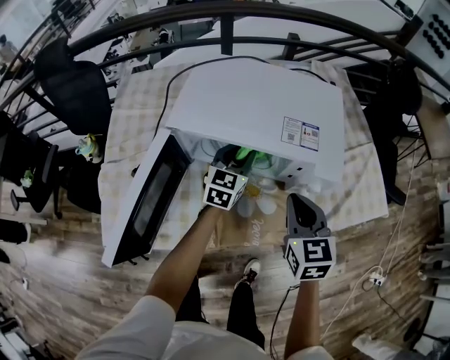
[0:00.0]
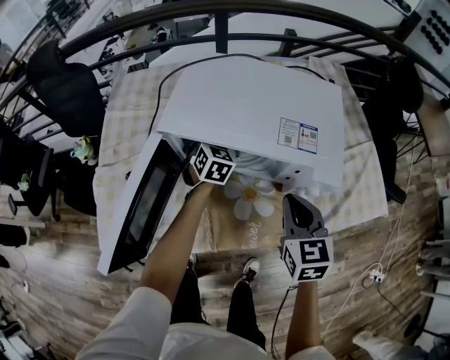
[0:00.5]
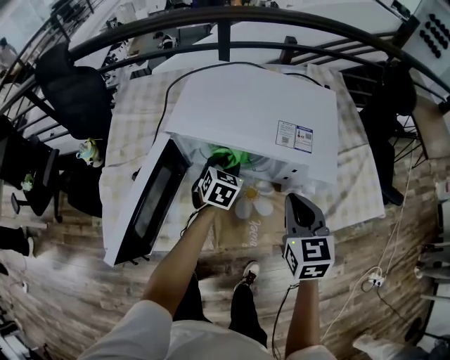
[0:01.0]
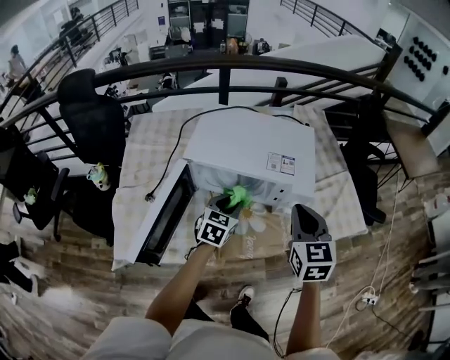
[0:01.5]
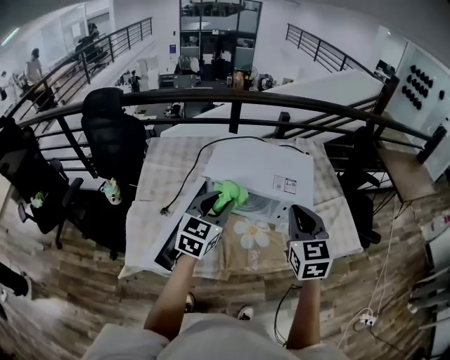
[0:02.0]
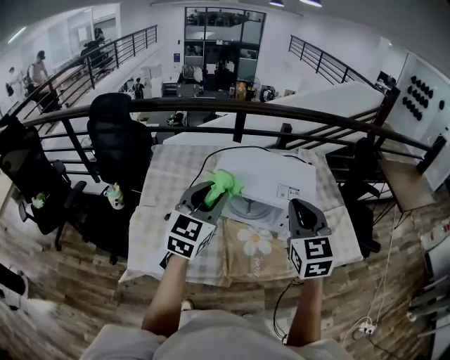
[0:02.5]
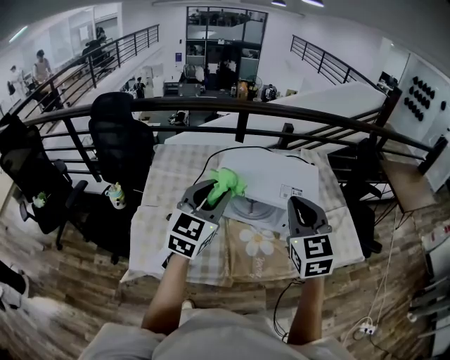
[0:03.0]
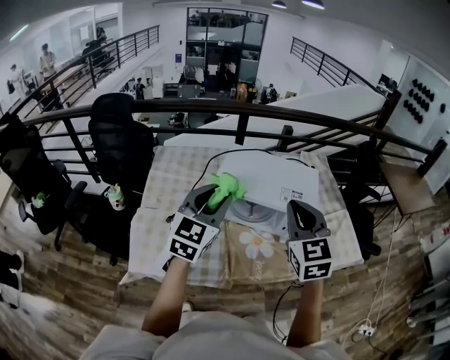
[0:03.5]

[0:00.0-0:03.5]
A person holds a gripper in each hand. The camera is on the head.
0:00.0 to 0:02.0: The right gripper shifts roughly 20 cm upward. The left gripper goes roughly 30 cm upward and backward.
0:02.0 to 0:03.5: The right gripper moves to the left and upward, roughly 10 cm. The left gripper moves upward and to the left, some 10 cm.

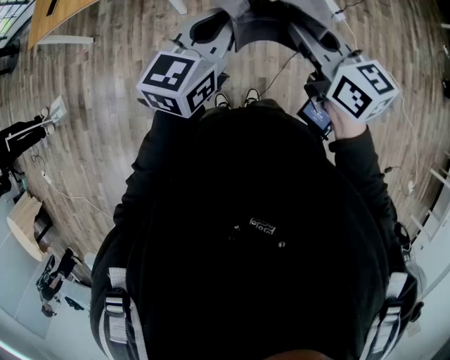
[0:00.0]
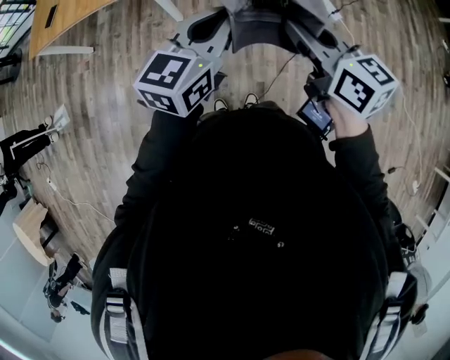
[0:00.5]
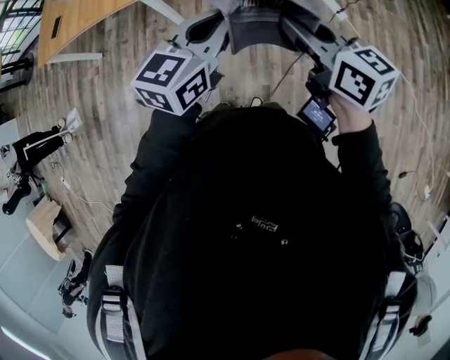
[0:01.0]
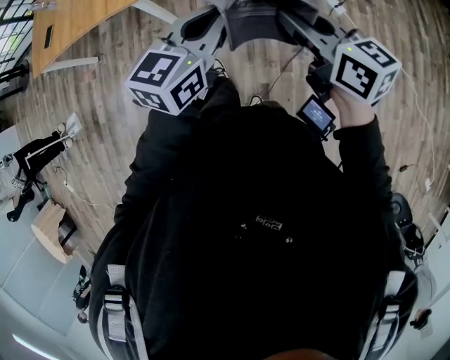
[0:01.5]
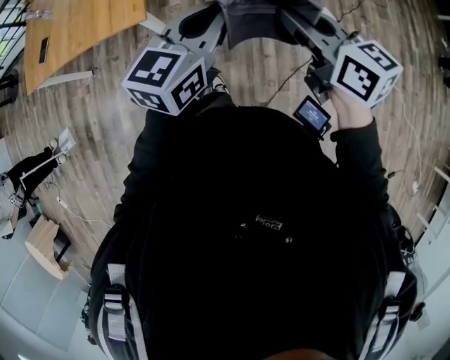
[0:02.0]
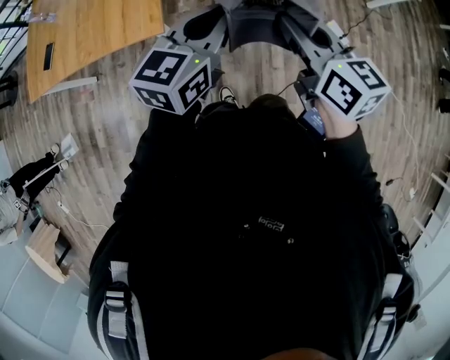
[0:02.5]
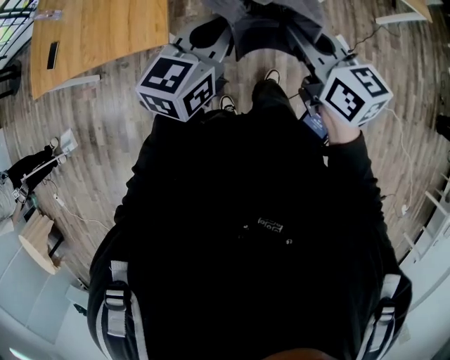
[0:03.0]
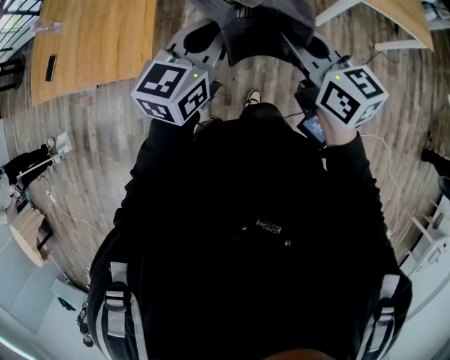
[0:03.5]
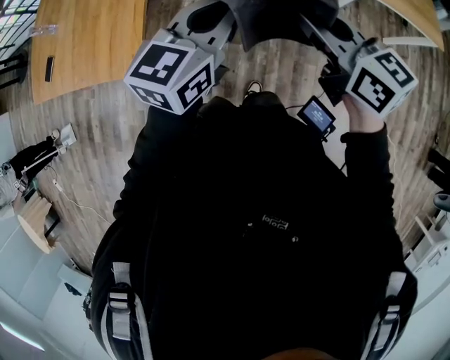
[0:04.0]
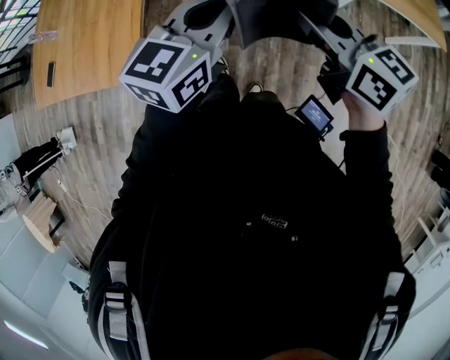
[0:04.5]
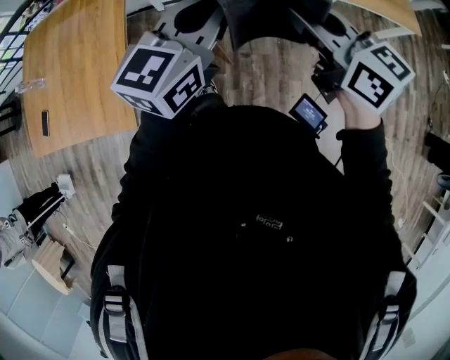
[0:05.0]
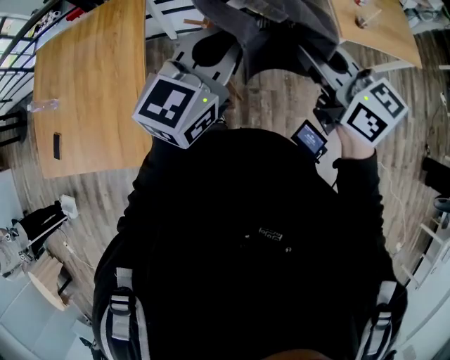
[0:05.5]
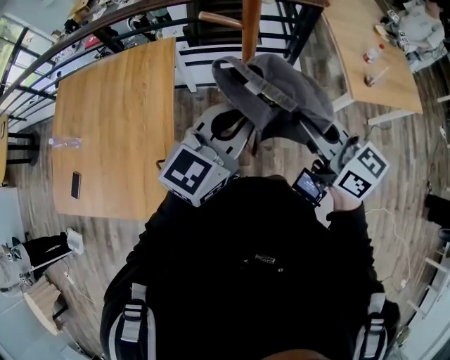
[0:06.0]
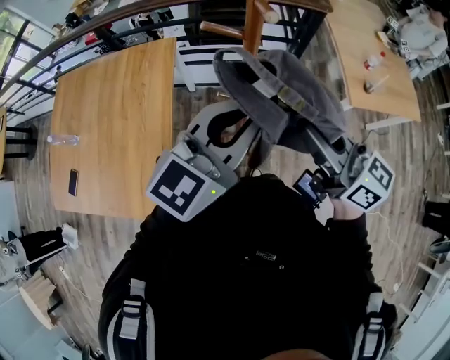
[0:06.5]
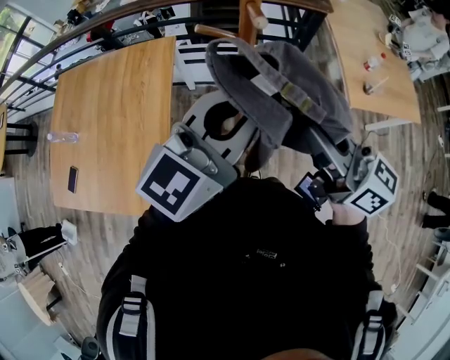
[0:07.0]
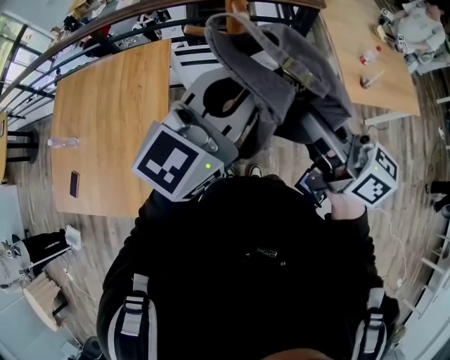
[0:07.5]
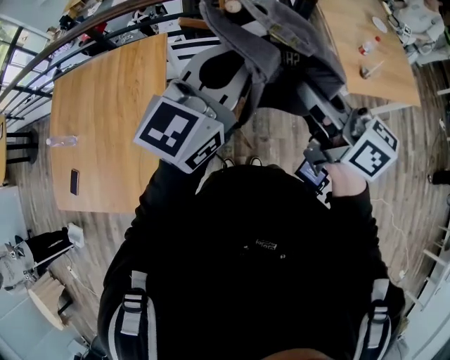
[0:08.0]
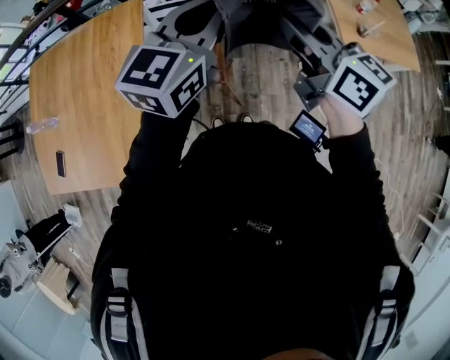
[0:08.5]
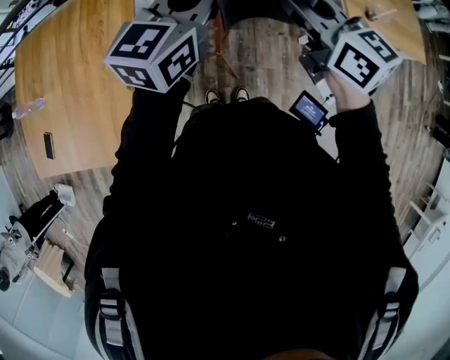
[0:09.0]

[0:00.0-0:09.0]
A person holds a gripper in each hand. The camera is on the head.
0:00.0 to 0:02.0: Both grippers move forward, about 20 cm.
0:02.0 to 0:04.5: The two grippers go roughly 35 cm forward and to the right.
0:04.5 to 0:07.0: The two grippers go some 25 cm forward and upward. The left gripper changes its angle by about 20 degrees.
0:07.0 to 0:09.0: The right gripper goes some 15 cm forward and downward; the left gripper heads downward and forward, covering about 15 cm.

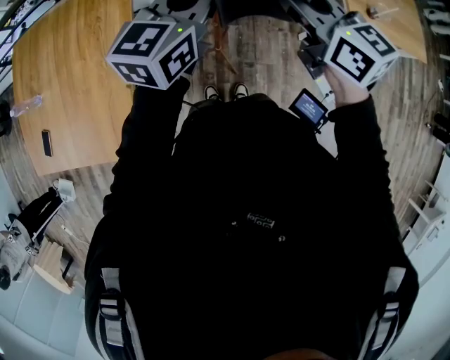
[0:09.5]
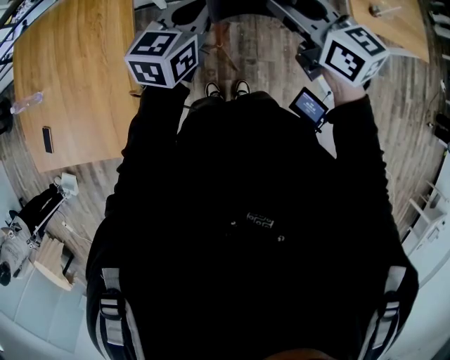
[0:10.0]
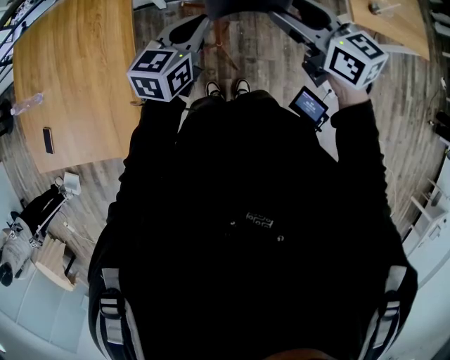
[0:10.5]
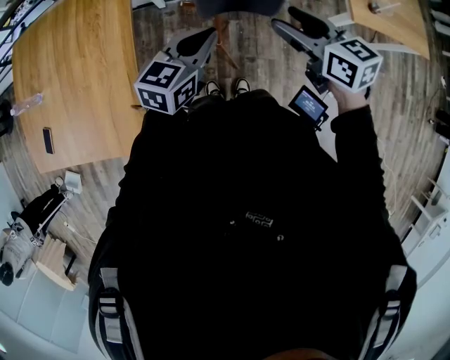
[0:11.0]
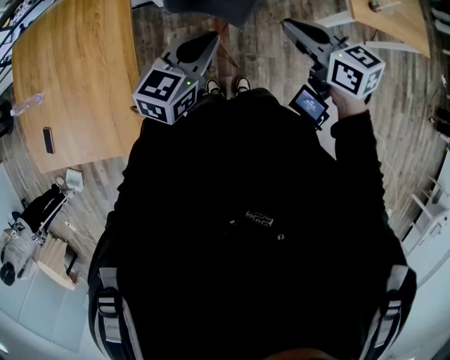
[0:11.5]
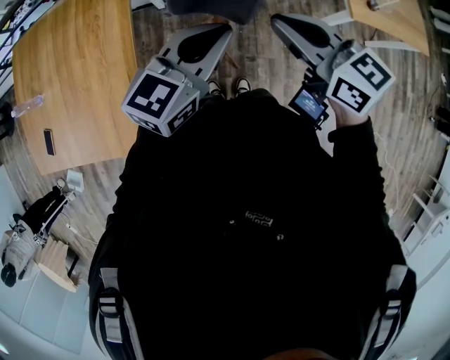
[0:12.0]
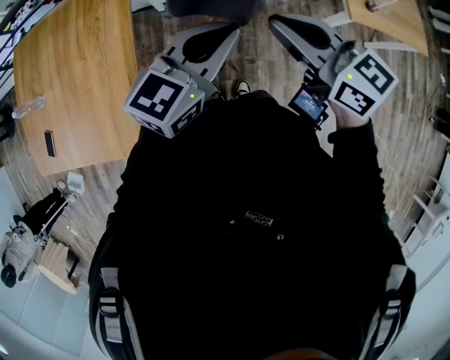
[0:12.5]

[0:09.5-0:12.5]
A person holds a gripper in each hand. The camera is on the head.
0:09.5 to 0:11.0: The right gripper heads downward, covering approximately 10 cm, and opens, while the left gripper is displaced downward and backward by some 15 cm.
0:11.0 to 0:12.5: The two grippers go roughly 10 cm upward. The right gripper closes its fingers.

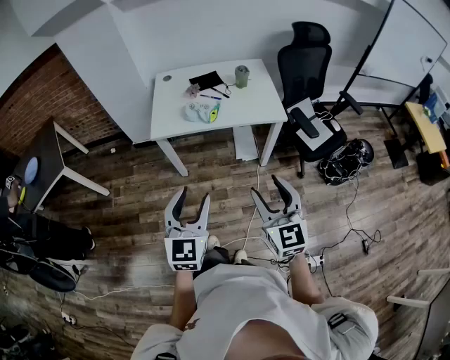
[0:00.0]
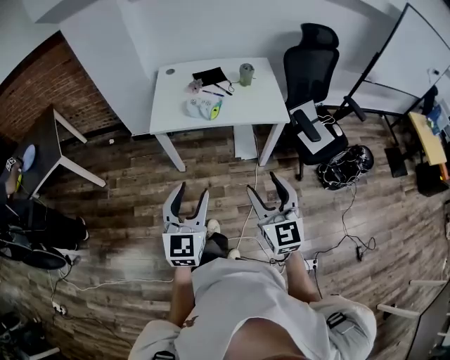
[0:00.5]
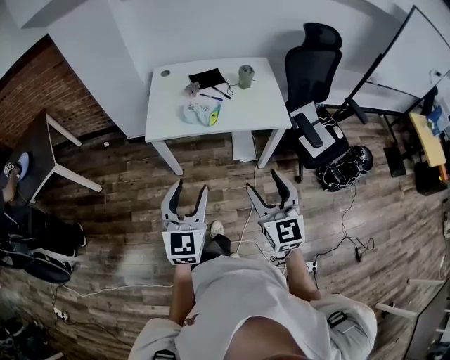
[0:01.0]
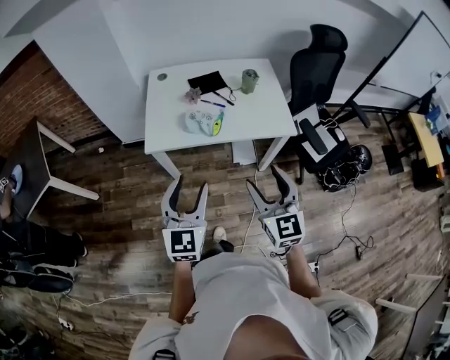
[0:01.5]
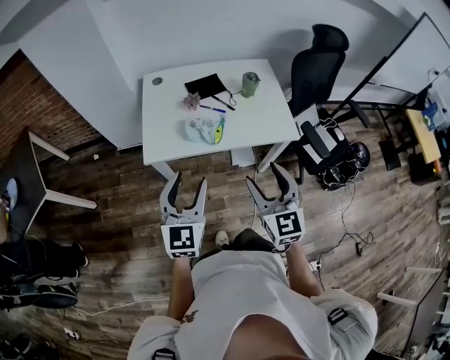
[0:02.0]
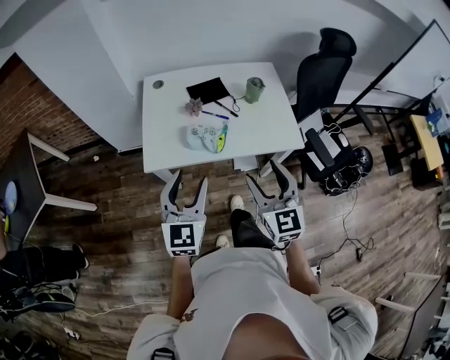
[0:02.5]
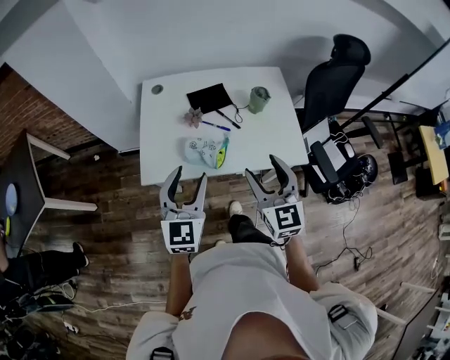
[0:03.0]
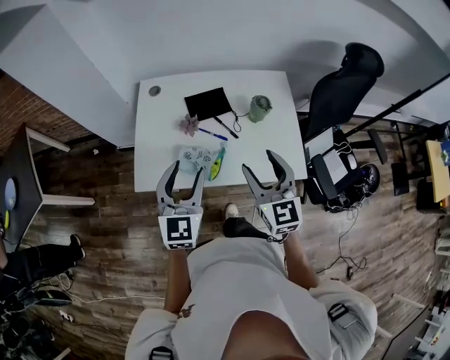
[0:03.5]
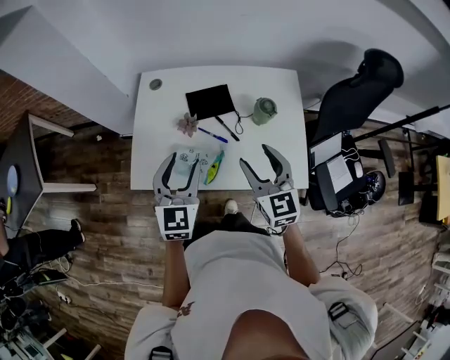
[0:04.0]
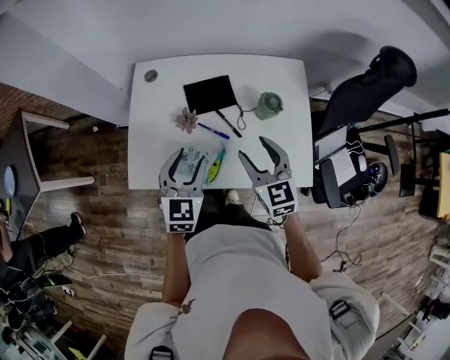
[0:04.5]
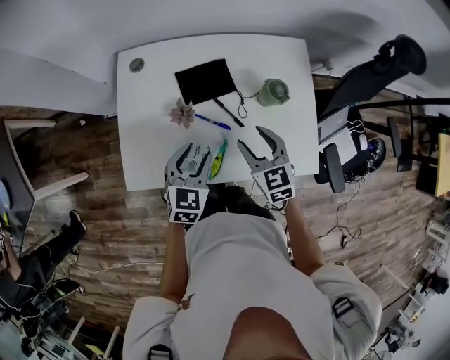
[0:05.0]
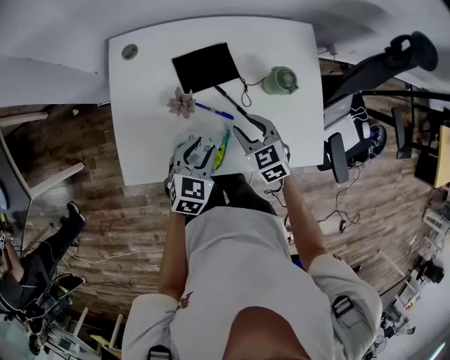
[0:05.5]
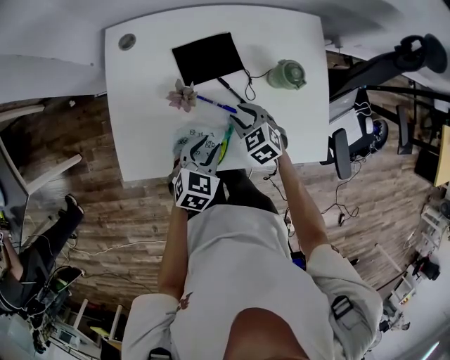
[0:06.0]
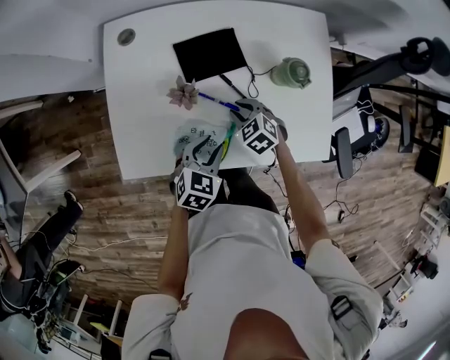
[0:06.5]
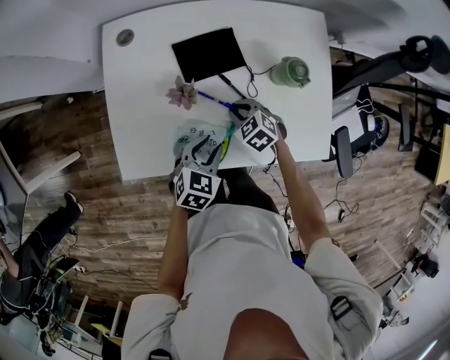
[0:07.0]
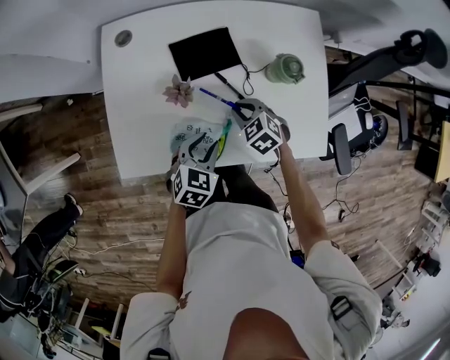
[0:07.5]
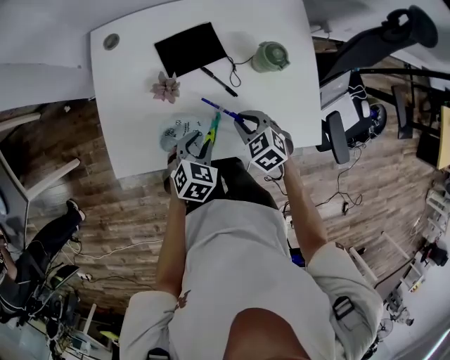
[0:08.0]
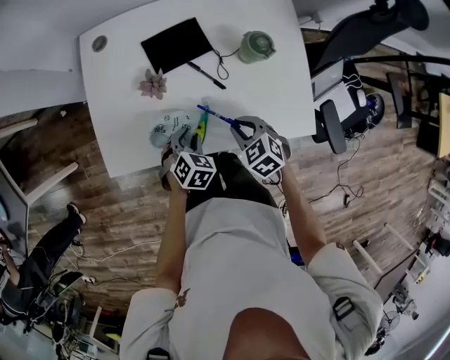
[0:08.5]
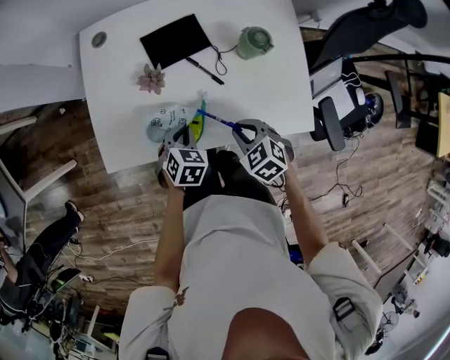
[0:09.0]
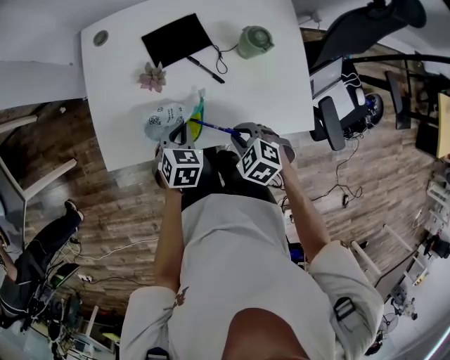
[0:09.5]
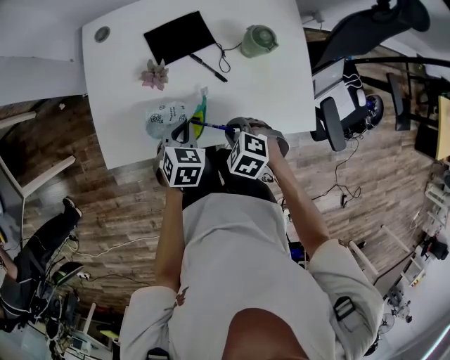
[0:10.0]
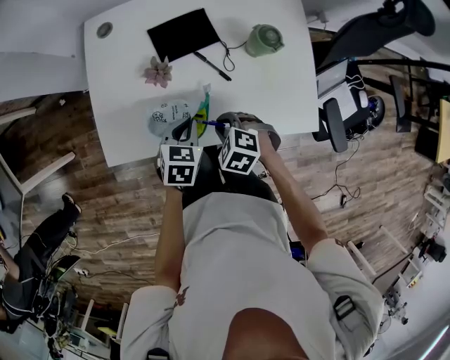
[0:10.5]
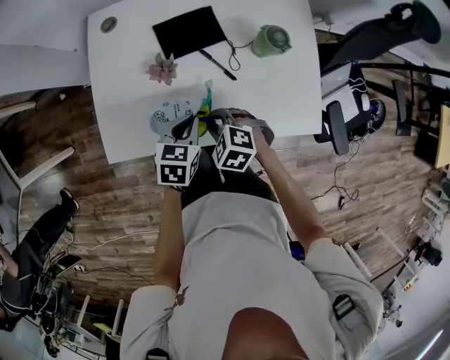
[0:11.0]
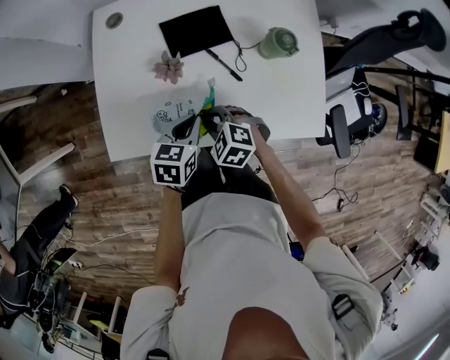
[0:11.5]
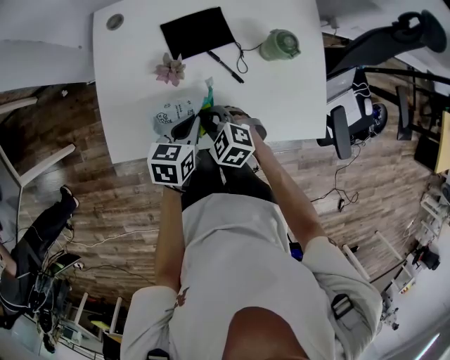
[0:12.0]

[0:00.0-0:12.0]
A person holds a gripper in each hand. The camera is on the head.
0:00.0 to 0:02.0: Both grippers travel together forward, some 25 cm.
0:02.0 to 0:04.0: Both grippers travel together forward, about 30 cm.
0:04.0 to 0:06.0: The left gripper goes roughly 25 cm downward, and tips its fingers downward by some 30 degrees. Meanwhile the right gripper travels downward and forward by roughly 30 cm, tips its fingers downward by approximately 40 degrees, and closes its fingers.
0:06.0 to 0:08.0: The right gripper heads backward, covering some 5 cm.
0:08.0 to 0:10.0: The right gripper travels backward by some 10 cm, and turns by roughly 20 degrees. Meanwhile the left gripper closes its fingers.
0:10.0 to 0:12.0: The left gripper changes its angle by some 30 degrees; the right gripper travels to the left and forward by roughly 10 cm.
